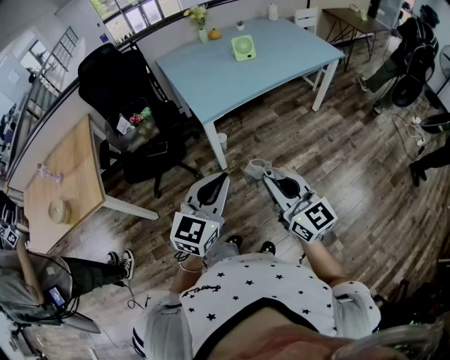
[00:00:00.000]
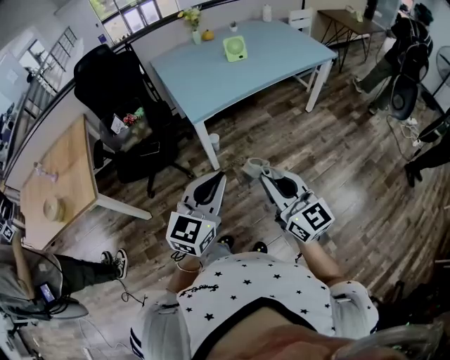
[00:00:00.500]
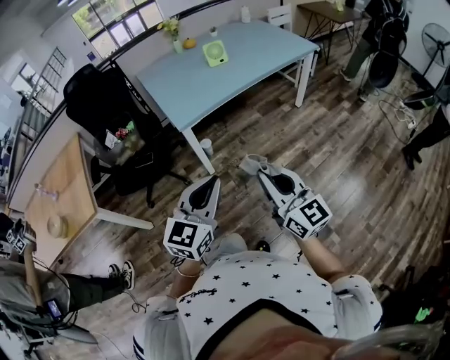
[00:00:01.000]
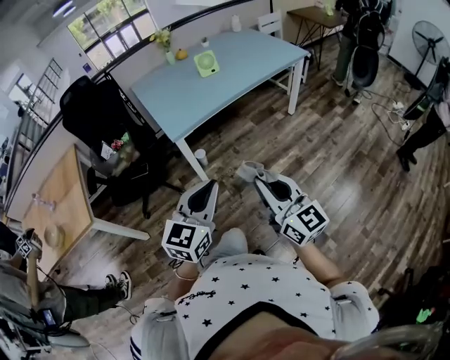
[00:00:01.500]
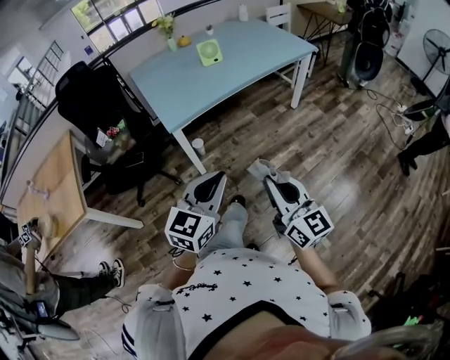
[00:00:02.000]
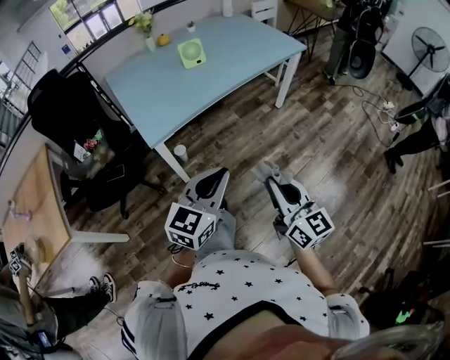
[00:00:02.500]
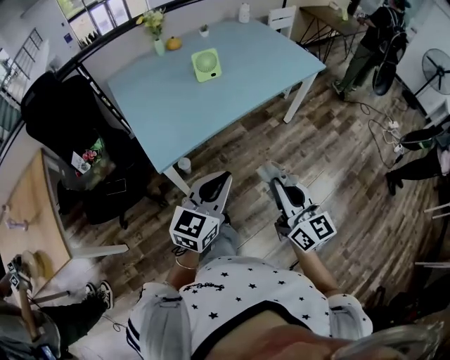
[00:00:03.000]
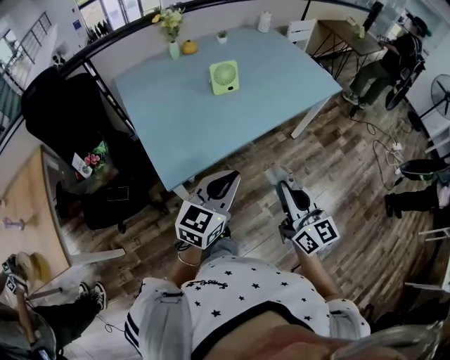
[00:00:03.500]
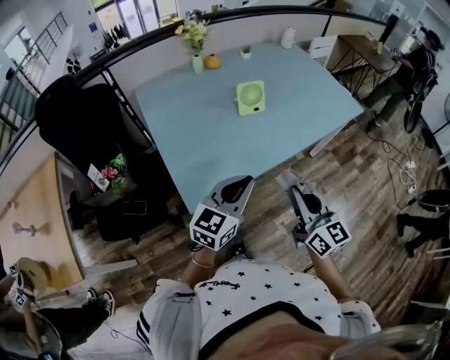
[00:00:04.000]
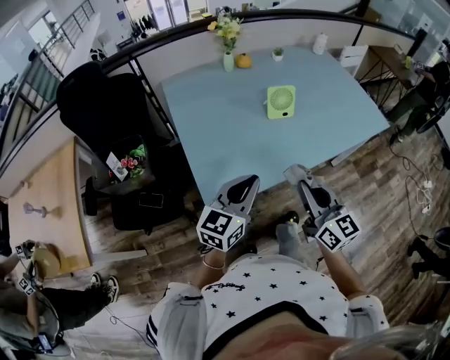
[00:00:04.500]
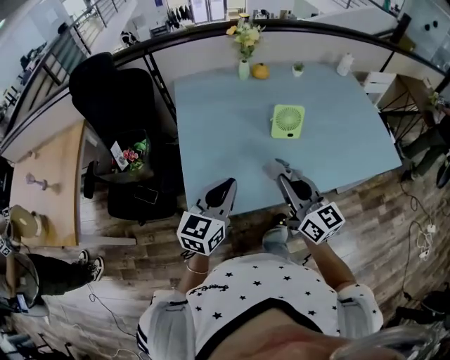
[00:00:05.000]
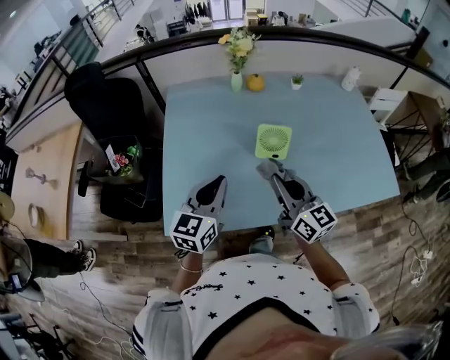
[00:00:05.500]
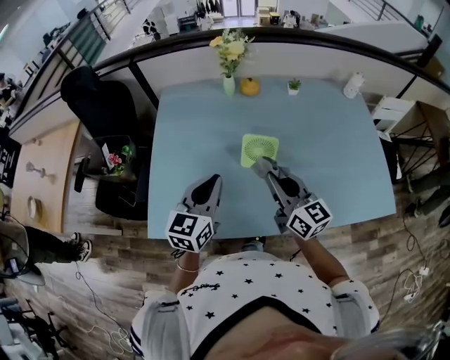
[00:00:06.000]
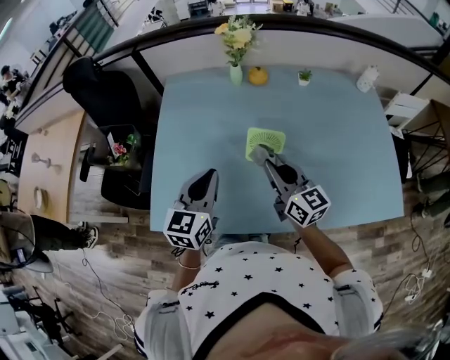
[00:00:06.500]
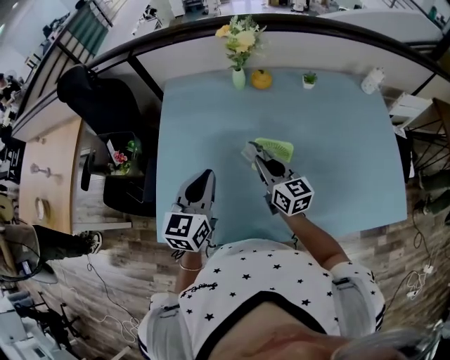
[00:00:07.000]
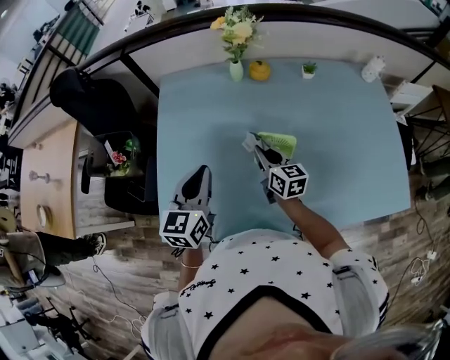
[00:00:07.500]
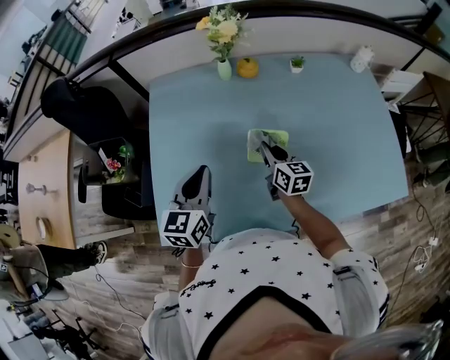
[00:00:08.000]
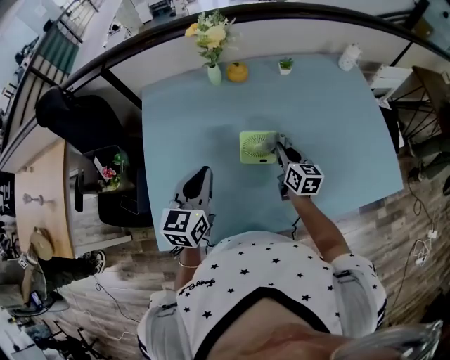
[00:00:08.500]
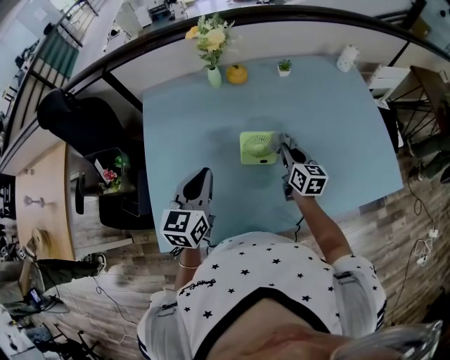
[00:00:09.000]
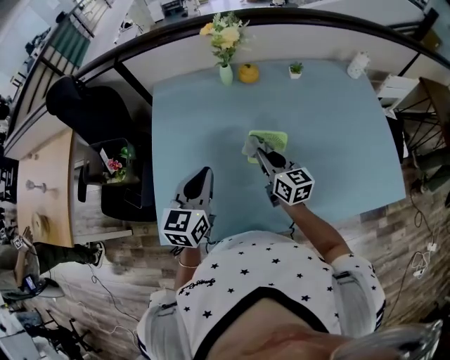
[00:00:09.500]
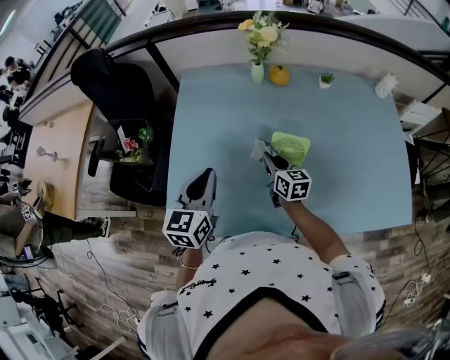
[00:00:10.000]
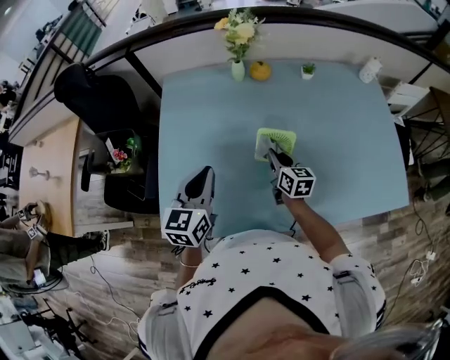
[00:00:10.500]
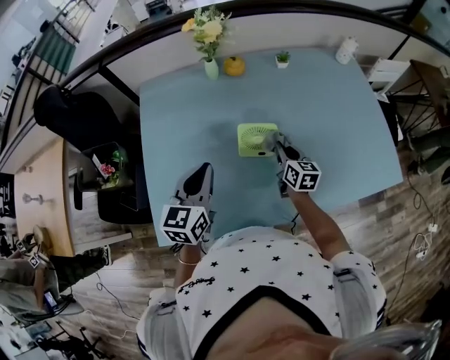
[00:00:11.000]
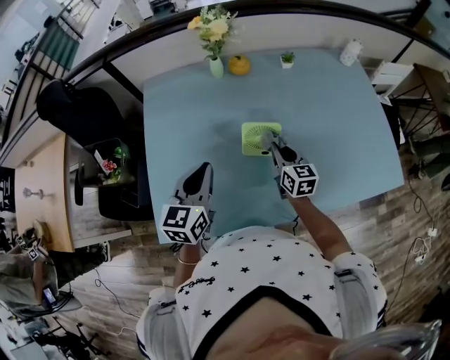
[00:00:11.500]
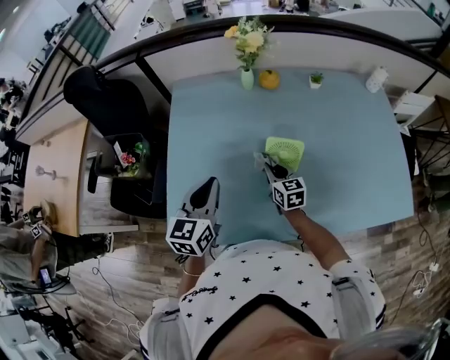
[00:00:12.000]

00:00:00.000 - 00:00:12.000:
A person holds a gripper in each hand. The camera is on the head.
00:00:00.000 - 00:00:02.000: Both grippers move to the right, some 15 cm.
00:00:02.000 - 00:00:04.000: The two grippers travel together, forward, roughly 40 cm.
00:00:04.000 - 00:00:06.000: The left gripper shifts by approximately 25 cm, and rotates some 40 degrees; the right gripper changes place by approximately 35 cm, and rotates some 30 degrees.
00:00:06.000 - 00:00:08.000: The right gripper goes some 20 cm forward and downward, and swivels some 20 degrees. Meanwhile the left gripper goes roughly 10 cm forward.
00:00:08.000 - 00:00:10.000: The left gripper ends up approximately 5 cm from where it was; the right gripper travels to the left by about 5 cm.
00:00:10.000 - 00:00:12.000: The right gripper moves some 15 cm to the right and comes back.

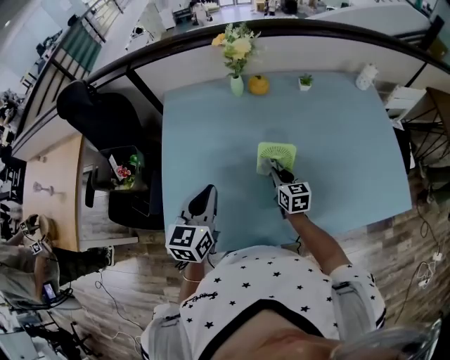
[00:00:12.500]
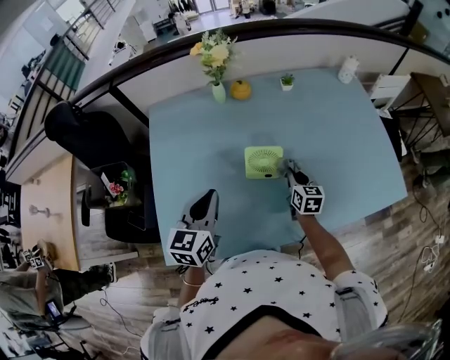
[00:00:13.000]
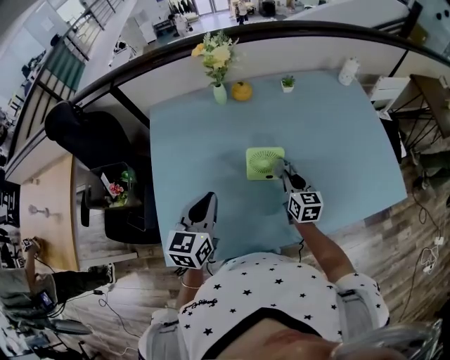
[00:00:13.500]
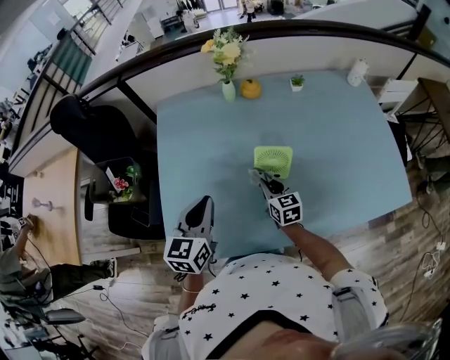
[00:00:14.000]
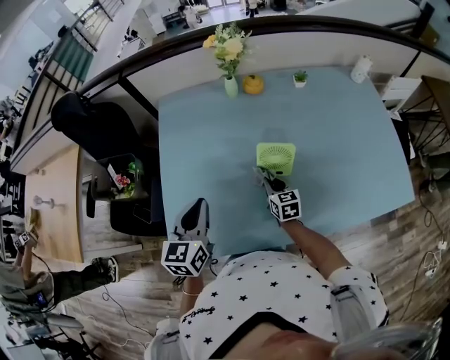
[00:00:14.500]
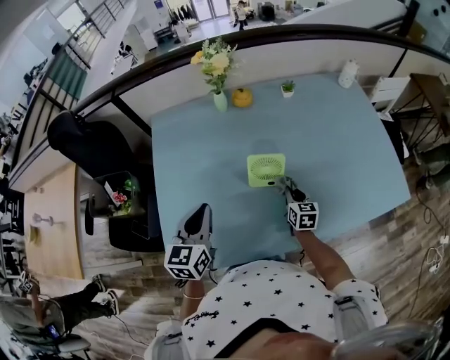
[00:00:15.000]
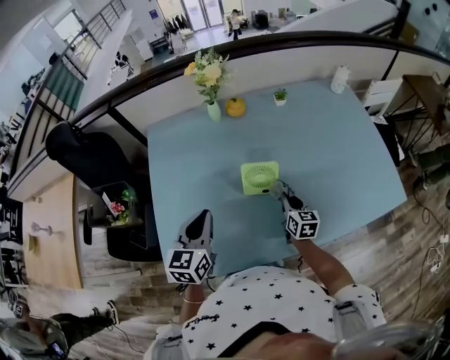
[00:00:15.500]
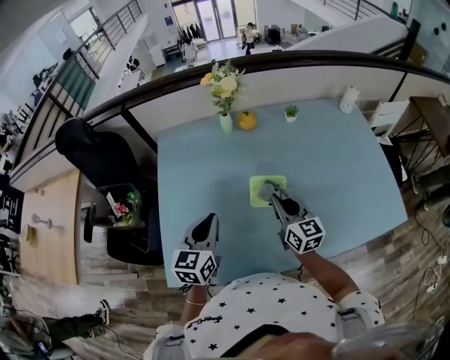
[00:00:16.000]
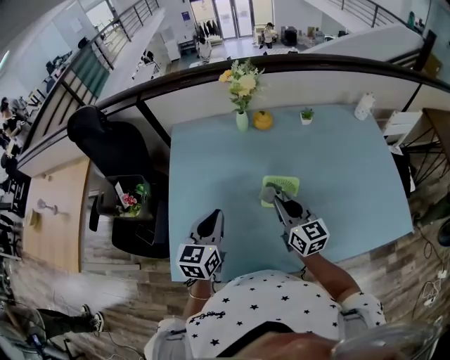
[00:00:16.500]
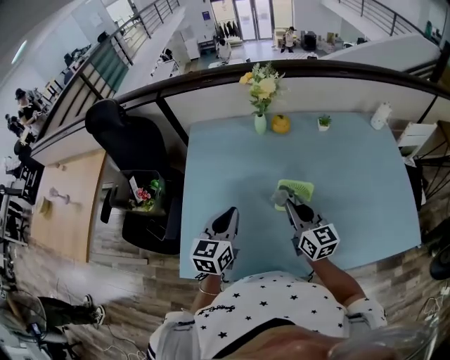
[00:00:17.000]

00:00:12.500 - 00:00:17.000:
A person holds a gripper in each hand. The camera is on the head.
00:00:12.500 - 00:00:14.500: The right gripper travels to the right and back again, approximately 10 cm each way.
00:00:14.500 - 00:00:17.000: The right gripper shifts some 20 cm upward, and turns by approximately 30 degrees. Meanwhile the left gripper changes place by some 5 cm.

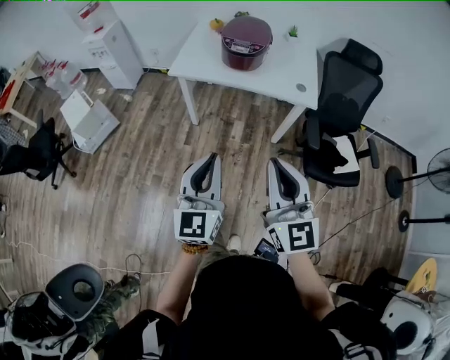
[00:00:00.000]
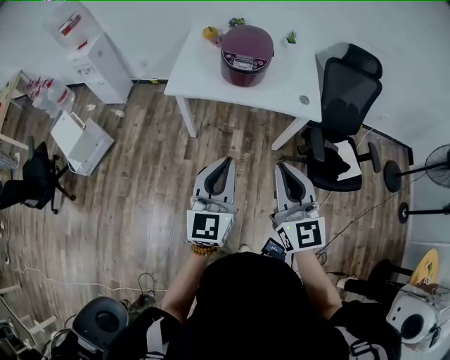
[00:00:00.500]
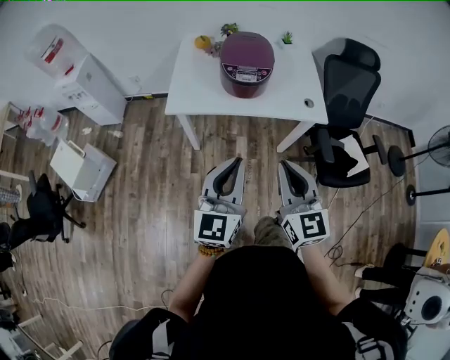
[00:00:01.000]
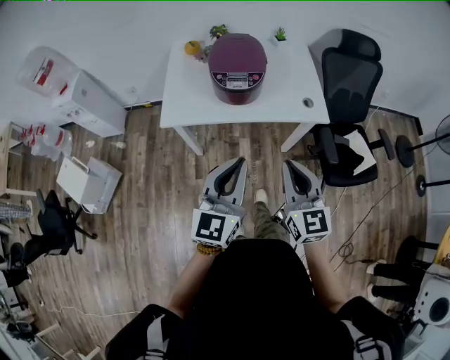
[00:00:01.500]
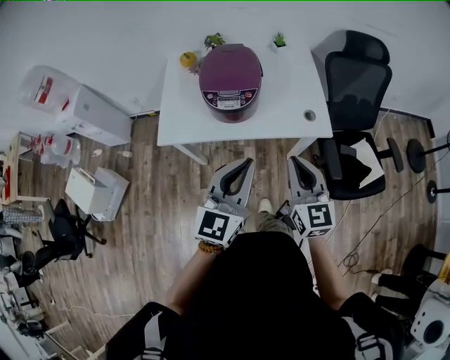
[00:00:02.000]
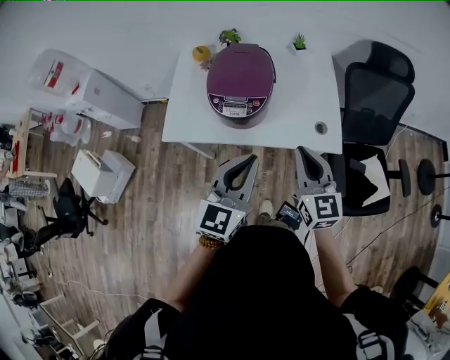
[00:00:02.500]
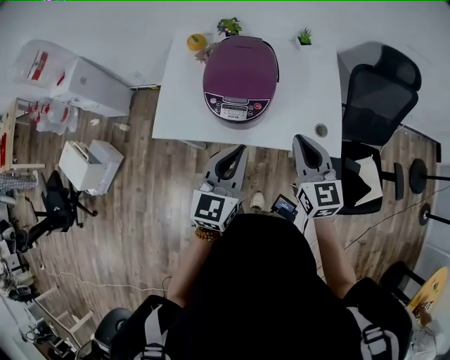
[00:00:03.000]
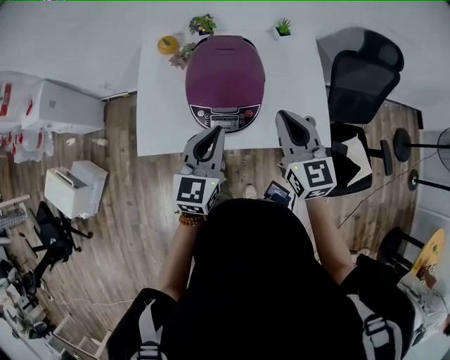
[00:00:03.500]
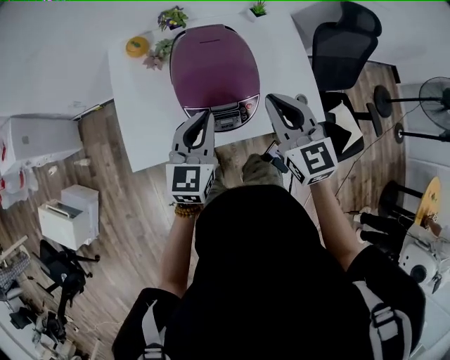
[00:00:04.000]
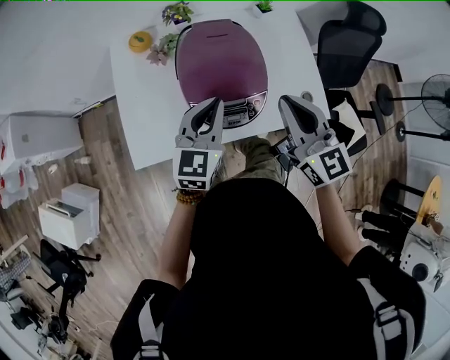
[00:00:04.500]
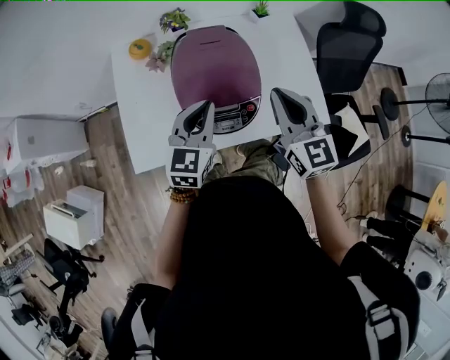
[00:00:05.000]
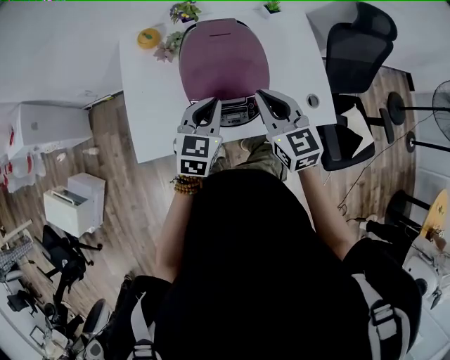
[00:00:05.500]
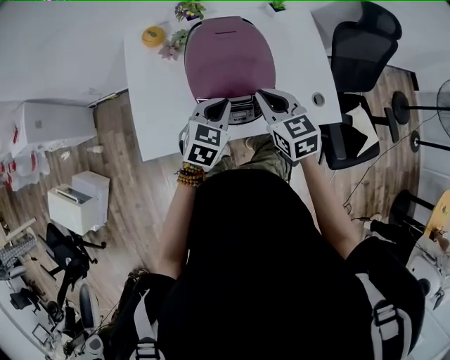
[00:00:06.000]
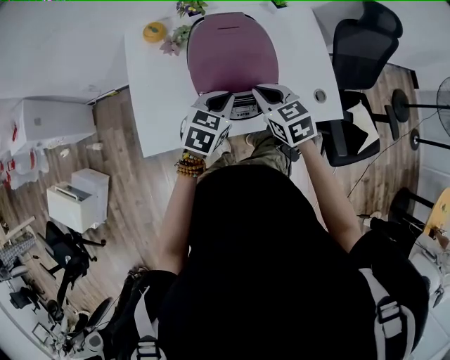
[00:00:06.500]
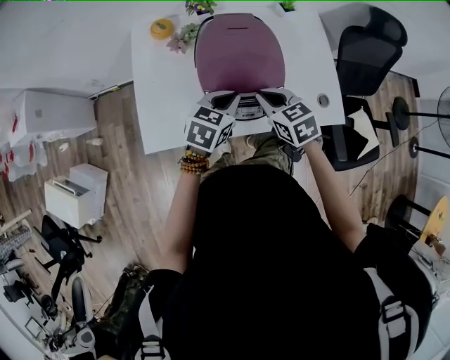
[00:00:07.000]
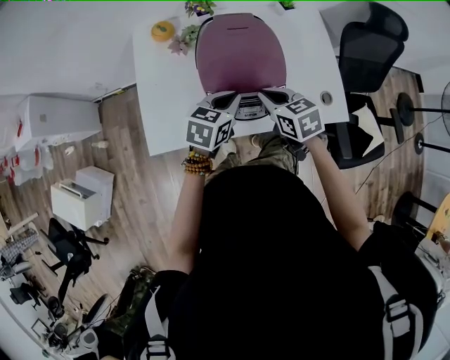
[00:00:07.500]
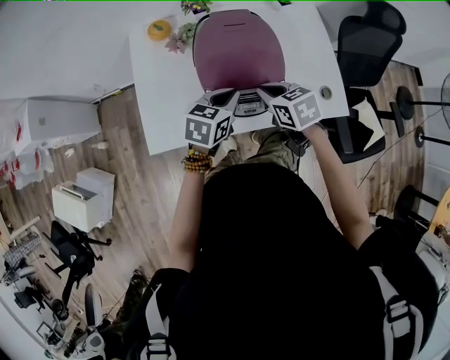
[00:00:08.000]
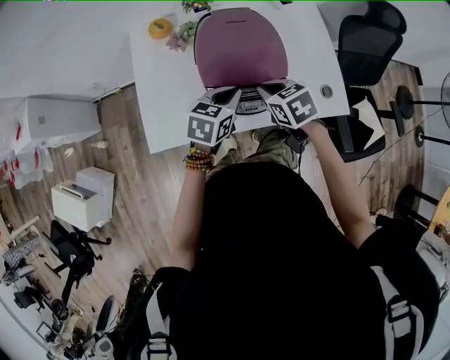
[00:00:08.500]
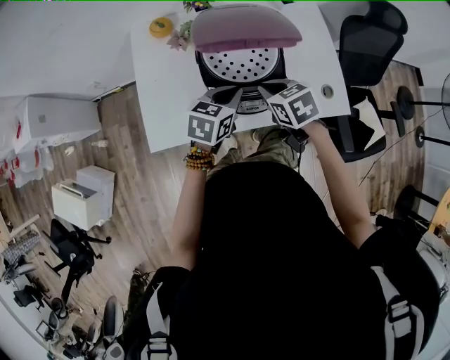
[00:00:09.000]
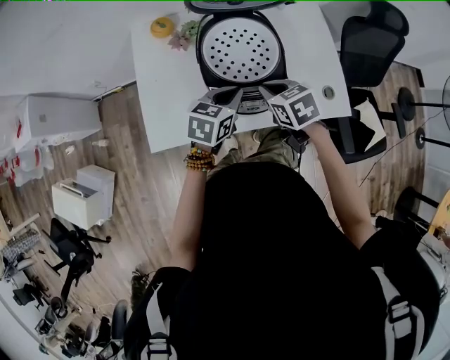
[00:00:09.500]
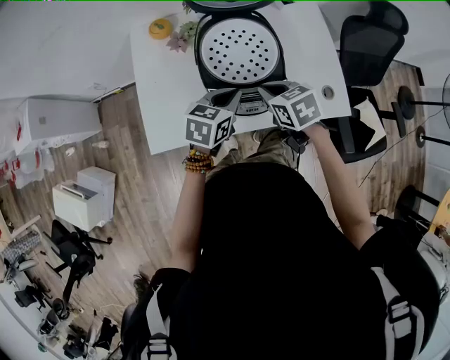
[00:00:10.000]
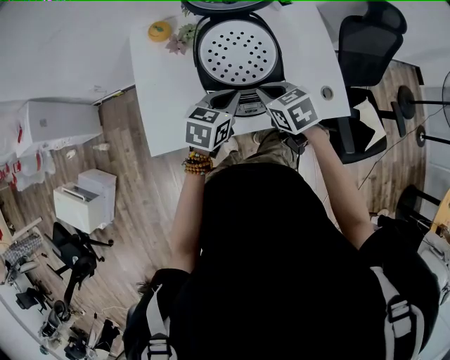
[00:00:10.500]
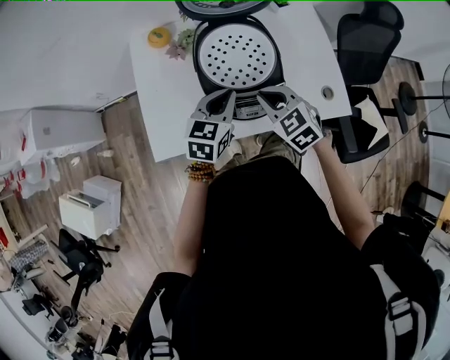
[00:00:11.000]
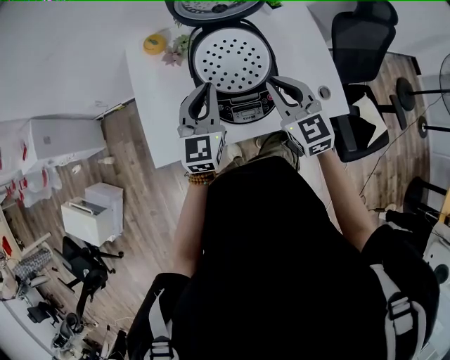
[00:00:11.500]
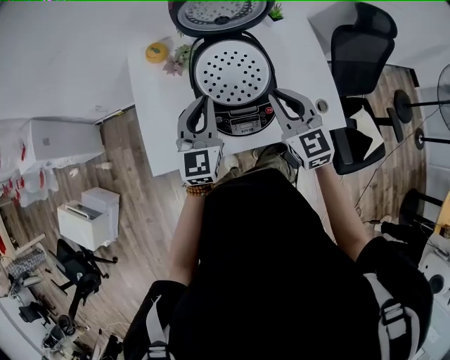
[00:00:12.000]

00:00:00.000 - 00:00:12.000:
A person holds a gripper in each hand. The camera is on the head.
00:00:00.000 - 00:00:02.000: Both grippers travel together forward, about 35 cm. The right gripper rotates roughly 20 degrees. The left gripper swivels some 30 degrees.
00:00:02.000 - 00:00:04.000: The two grippers go about 35 cm forward and to the left.
00:00:04.000 - 00:00:06.000: Both grippers travel together downward, some 10 cm. The left gripper swivels roughly 30 degrees.
00:00:06.000 - 00:00:08.000: The right gripper ends up some 5 cm from where it was, and swivels approximately 20 degrees.
00:00:08.000 - 00:00:10.000: The grippers stay close to where they were, moving slightly.
00:00:10.000 - 00:00:12.000: The right gripper moves upward, about 10 cm, and tilts its fingers approximately 30 degrees upward. The left gripper goes some 10 cm upward and to the left, and swivels some 40 degrees.
